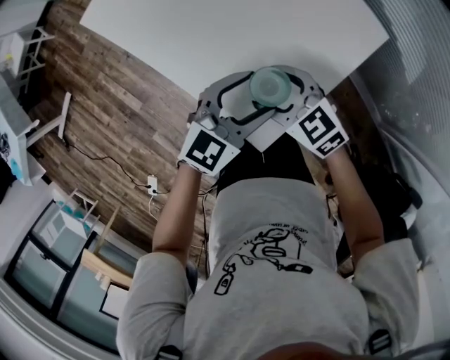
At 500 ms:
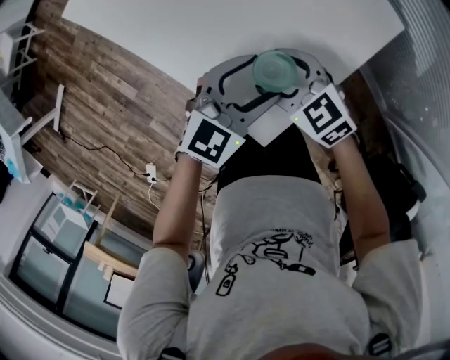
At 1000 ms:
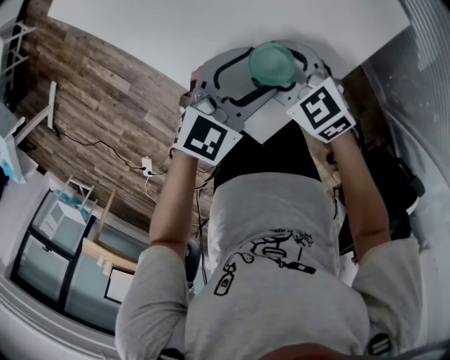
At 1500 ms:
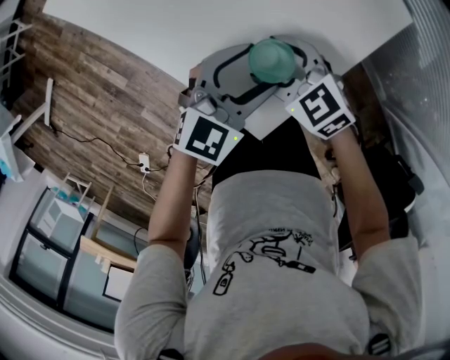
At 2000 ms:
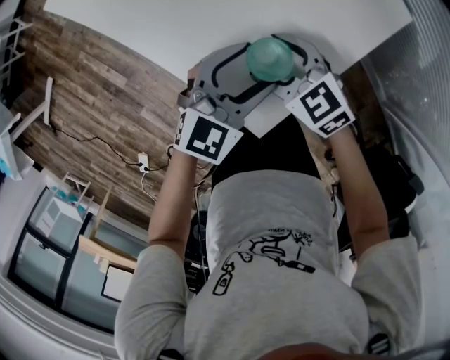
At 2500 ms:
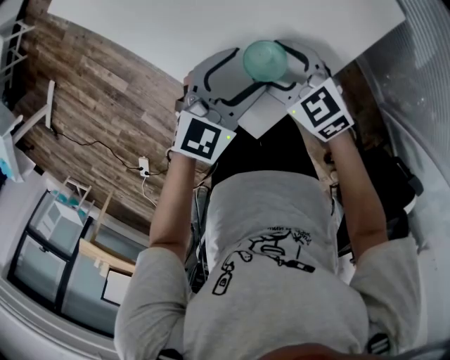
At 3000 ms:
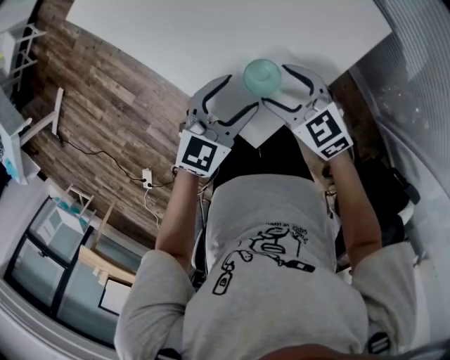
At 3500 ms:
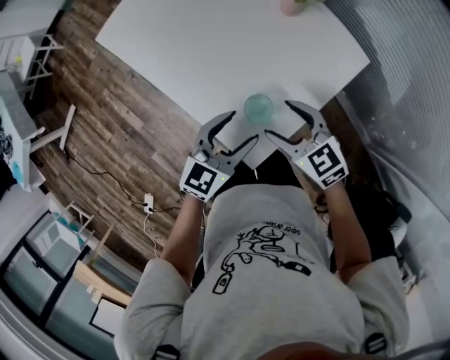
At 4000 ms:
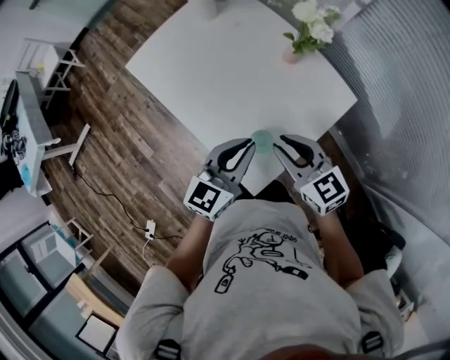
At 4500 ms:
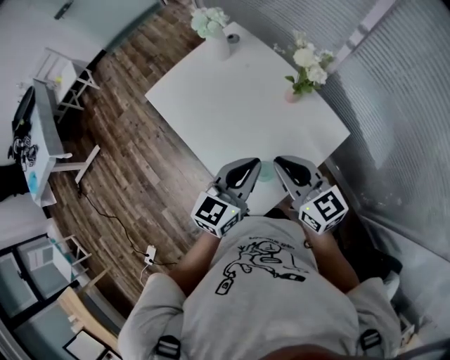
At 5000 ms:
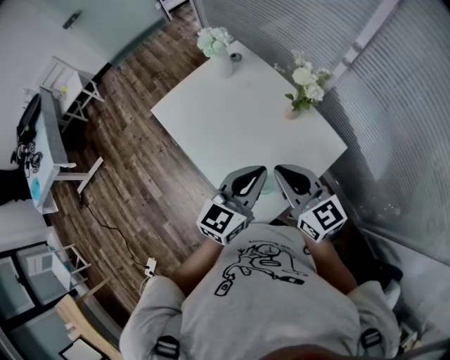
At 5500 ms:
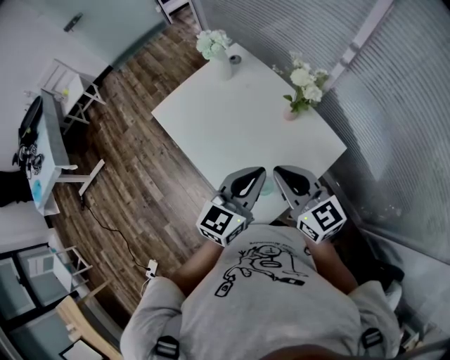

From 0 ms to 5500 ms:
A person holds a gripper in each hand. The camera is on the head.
From 0 ms to 2000 ms: Both grippers travel together downward, some 5 cm.
From 2000 ms to 3500 ms: The right gripper heads upward, covering roughly 10 cm. The left gripper shifts some 10 cm upward.
From 3500 ms to 5500 ms: The two grippers go approximately 20 cm upward. The left gripper closes up. Meanwhile the right gripper changes its angle by roughly 30 degrees, and closes.

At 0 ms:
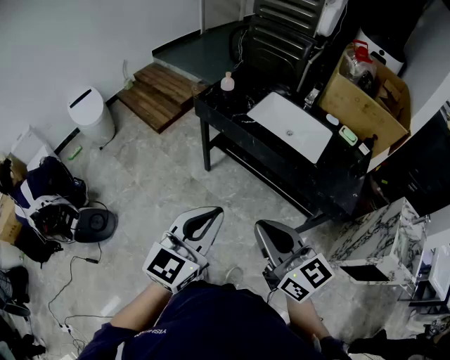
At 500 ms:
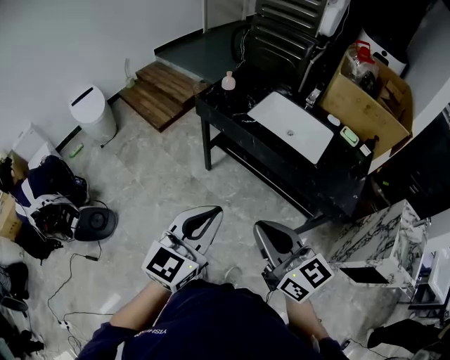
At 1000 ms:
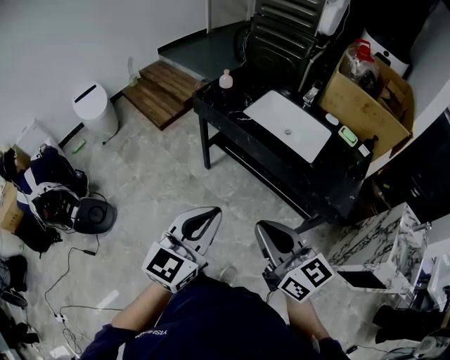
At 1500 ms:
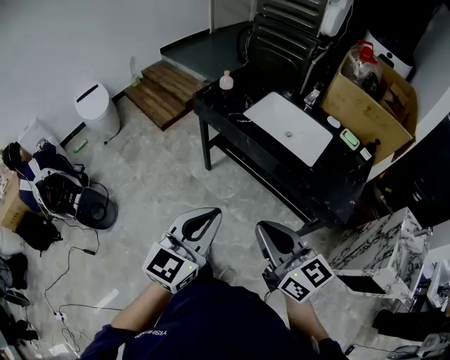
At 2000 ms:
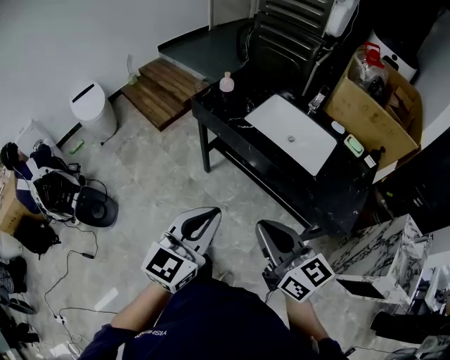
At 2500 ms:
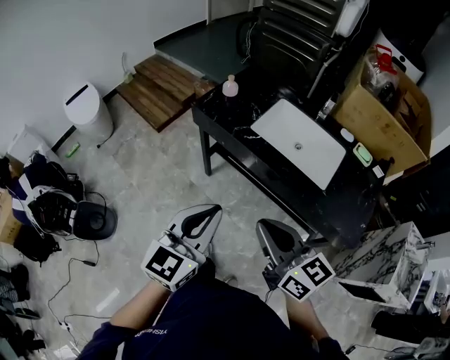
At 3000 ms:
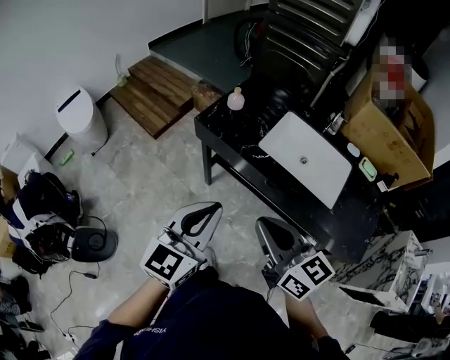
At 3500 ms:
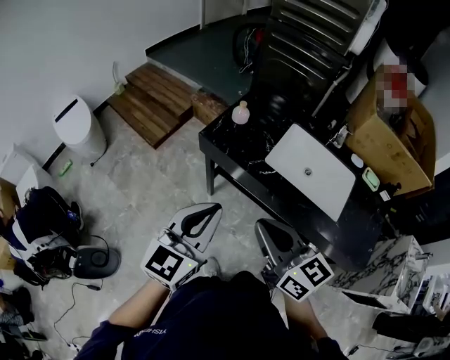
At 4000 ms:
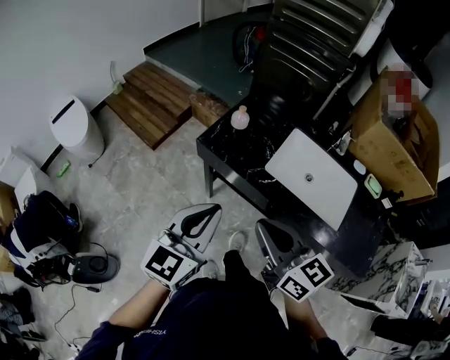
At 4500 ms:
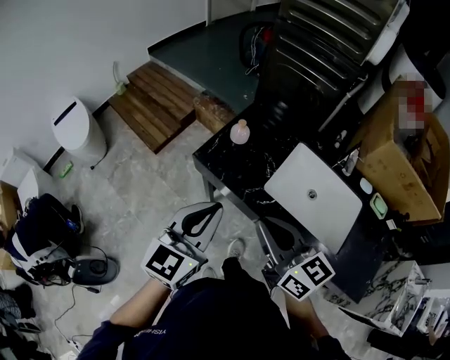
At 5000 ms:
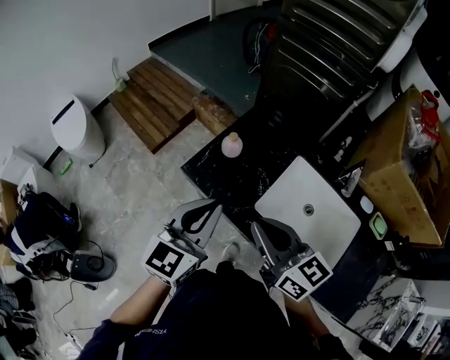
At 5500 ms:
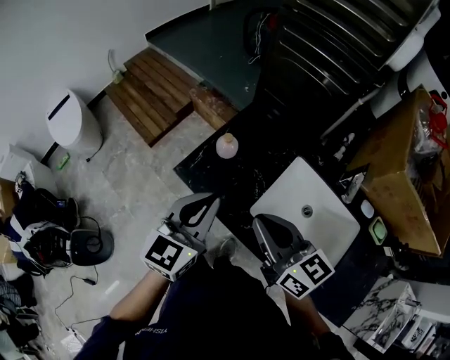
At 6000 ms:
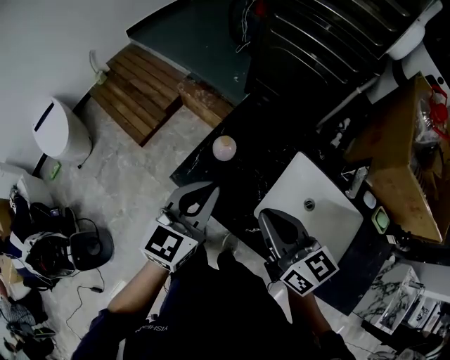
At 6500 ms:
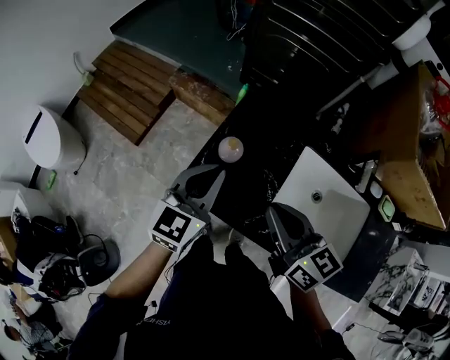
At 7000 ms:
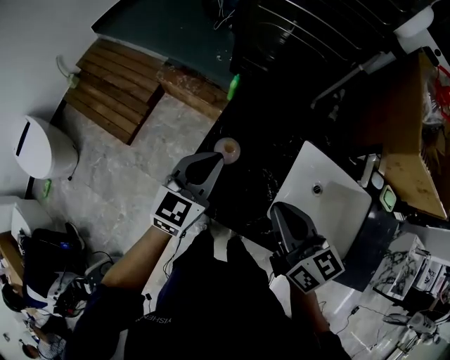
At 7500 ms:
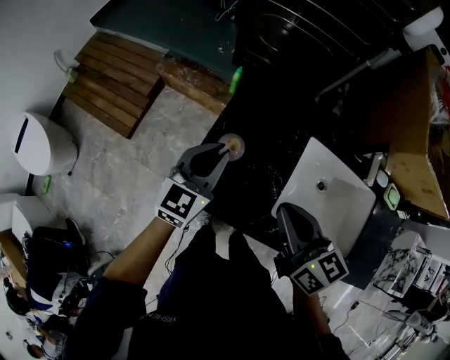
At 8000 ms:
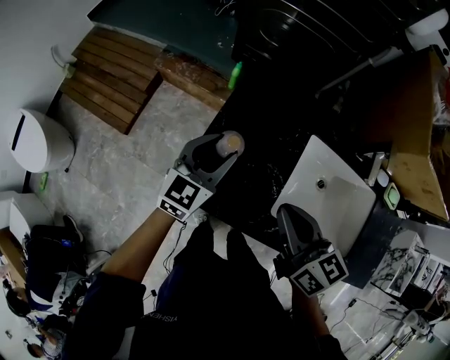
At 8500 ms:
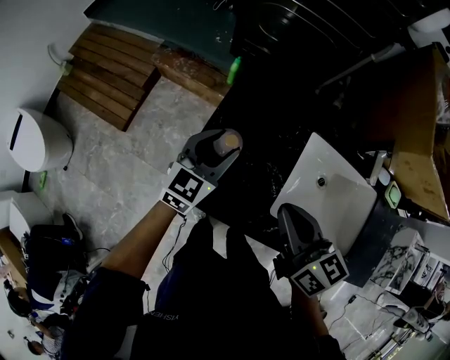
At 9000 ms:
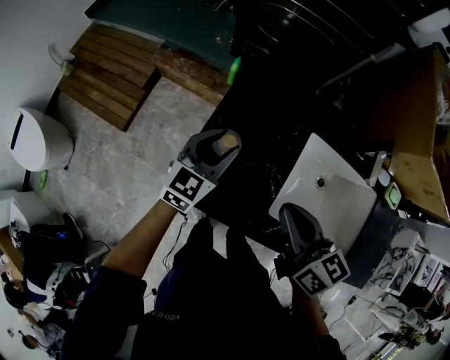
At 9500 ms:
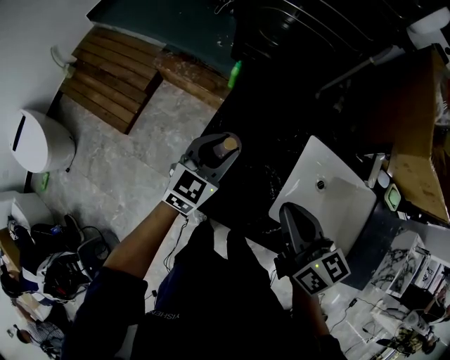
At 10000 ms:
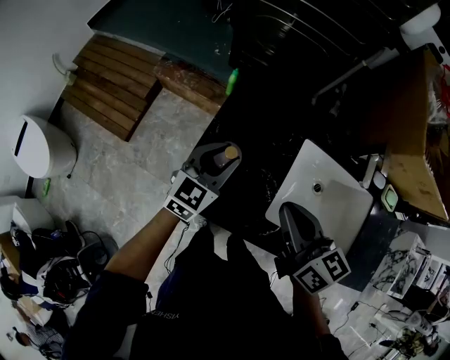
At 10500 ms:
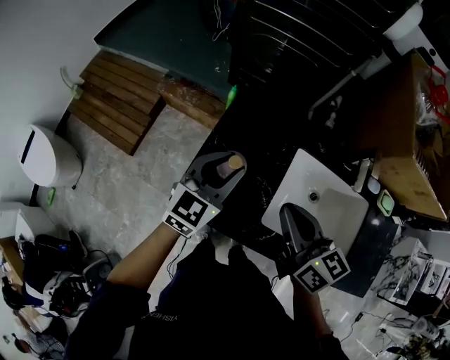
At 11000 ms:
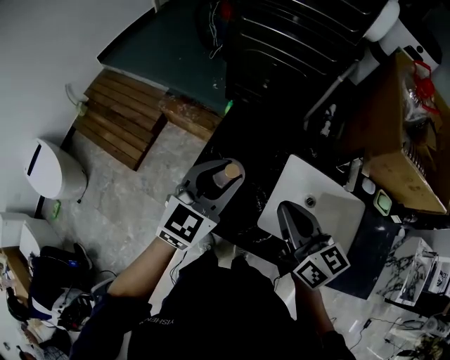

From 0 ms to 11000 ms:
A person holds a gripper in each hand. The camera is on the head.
From 0 ms to 2000 ms: The right gripper shifts roughly 10 cm forward and to the right. Meanwhile the left gripper goes roughly 5 cm forward.
From 2000 ms to 3500 ms: Both grippers move forward and to the left, about 30 cm.
From 3500 ms to 5500 ms: The grippers both shift forward by about 25 cm.
From 5500 ms to 7500 ms: The left gripper heads forward and downward, covering about 20 cm, while the right gripper travels forward and downward by approximately 10 cm, and swivels roughly 30 degrees.
From 7500 ms to 9000 ms: The left gripper changes place by some 5 cm, and opens its fingers.
From 9000 ms to 11000 ms: The left gripper moves upward, approximately 15 cm; the right gripper travels upward by roughly 5 cm.

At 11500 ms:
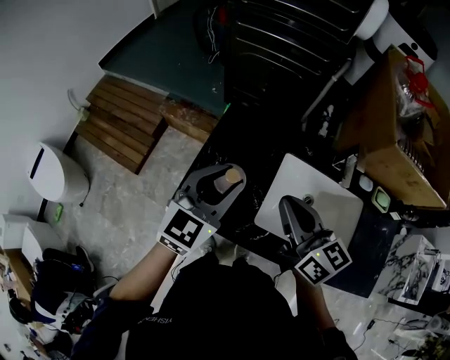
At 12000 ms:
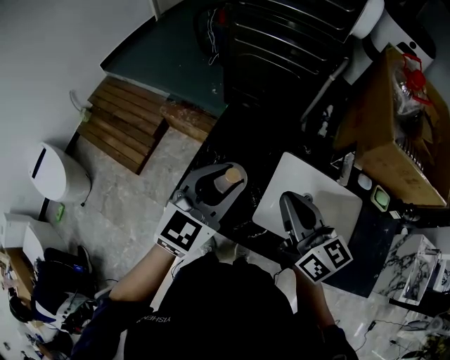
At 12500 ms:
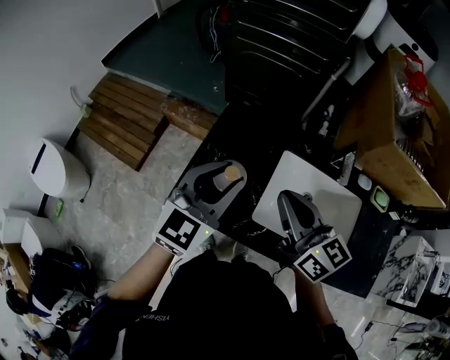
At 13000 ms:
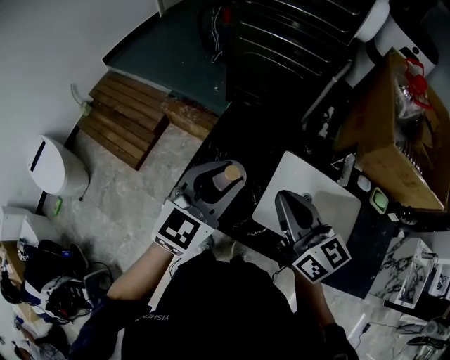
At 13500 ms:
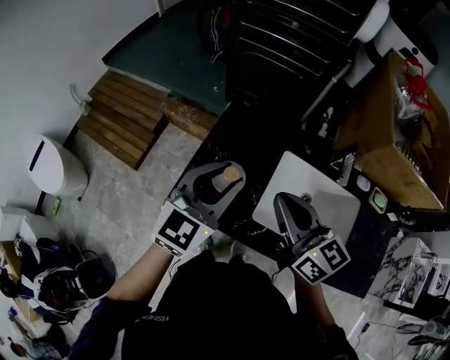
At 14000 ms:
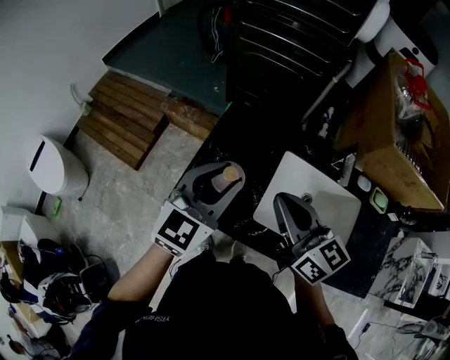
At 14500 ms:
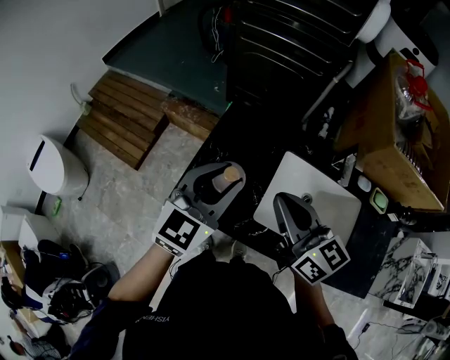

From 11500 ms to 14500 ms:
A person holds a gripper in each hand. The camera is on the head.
From 11500 ms to 13000 ms: The grippers move only a little.
From 13000 ms to 14500 ms: Neither gripper changes place.

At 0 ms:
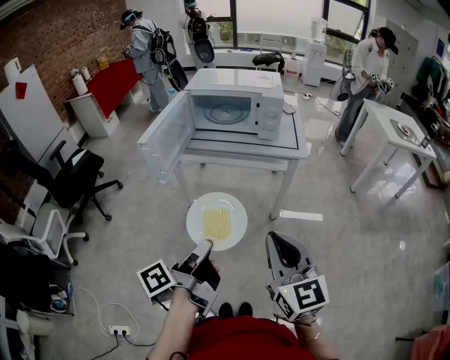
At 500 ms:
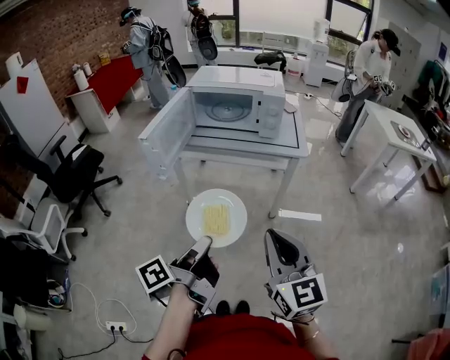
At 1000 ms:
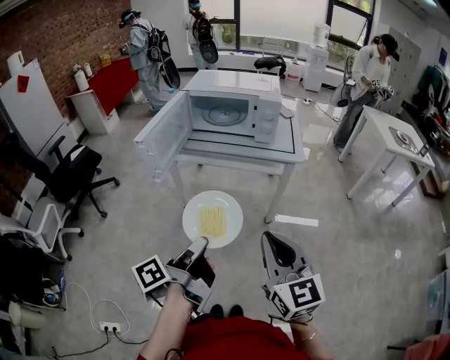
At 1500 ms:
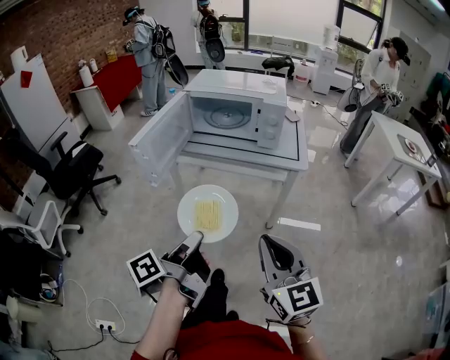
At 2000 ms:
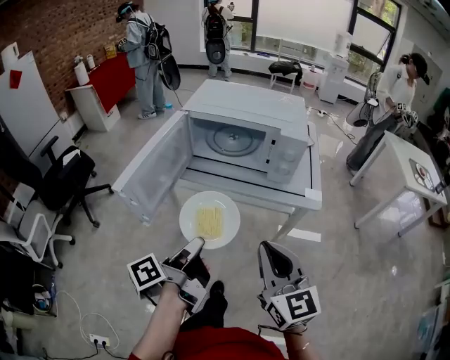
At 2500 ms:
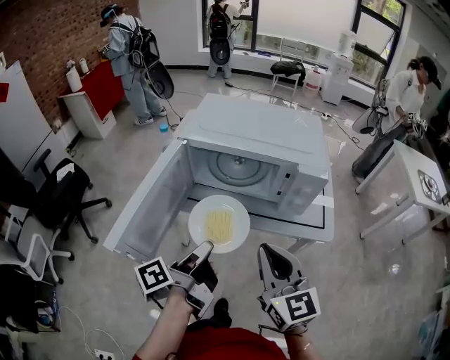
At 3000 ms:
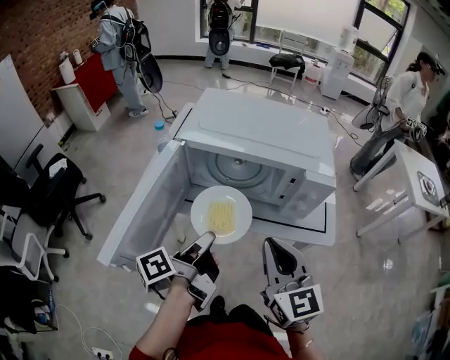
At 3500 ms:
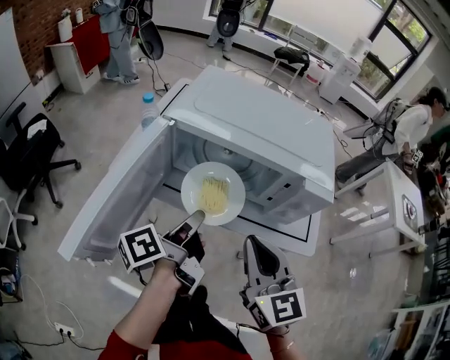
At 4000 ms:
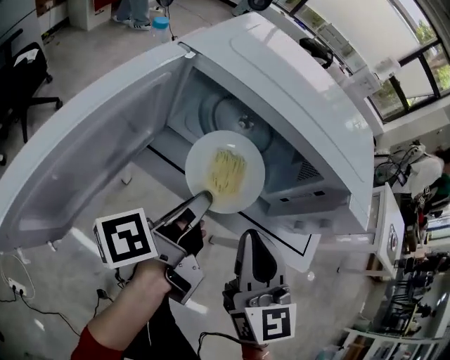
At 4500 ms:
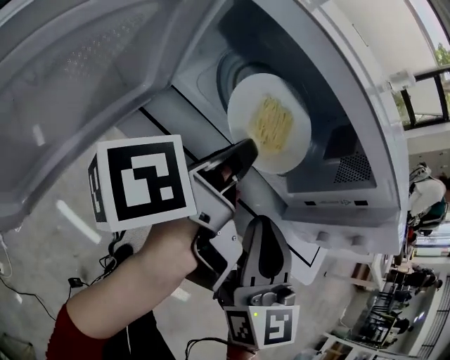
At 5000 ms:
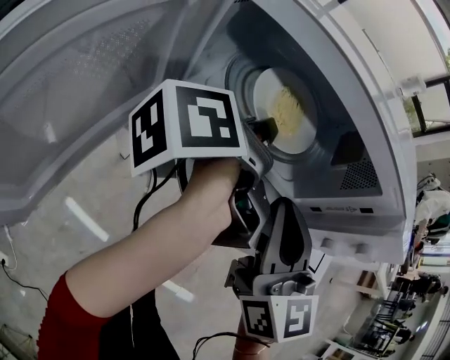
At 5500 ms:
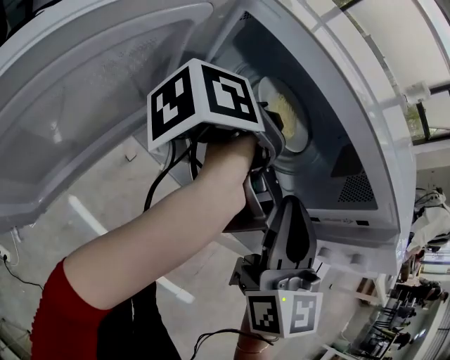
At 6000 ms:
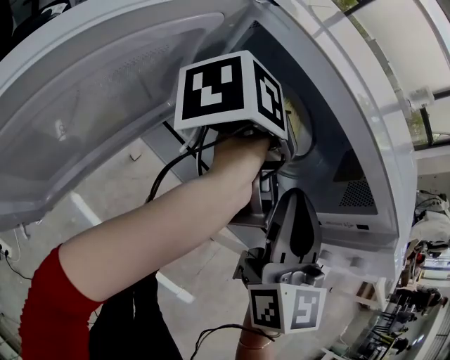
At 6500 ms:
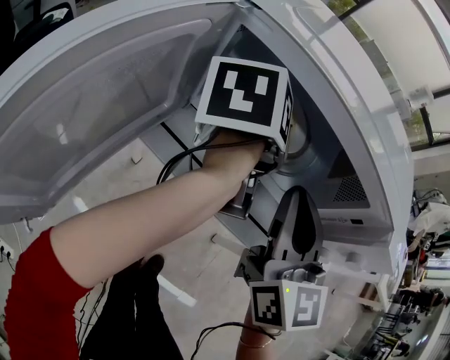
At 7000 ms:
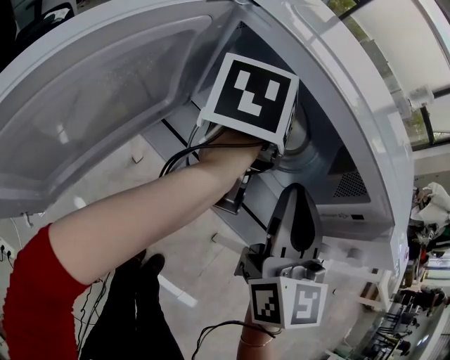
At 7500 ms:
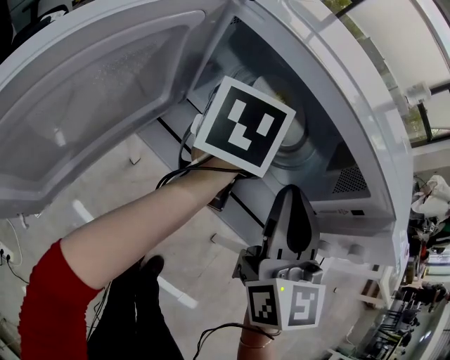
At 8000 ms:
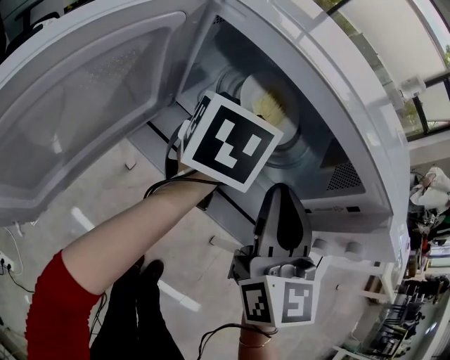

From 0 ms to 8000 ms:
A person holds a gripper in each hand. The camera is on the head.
From 0 ms to 2000 ms: The two grippers go some 20 cm forward.
From 2000 ms to 4000 ms: Both grippers move forward, some 25 cm.
From 4000 ms to 6000 ms: The right gripper heads forward, covering approximately 10 cm. The left gripper travels forward by approximately 15 cm, and rotates approximately 30 degrees.
From 6000 ms to 8000 ms: The left gripper twists about 50 degrees clockwise, seen from behind, and opens up.
